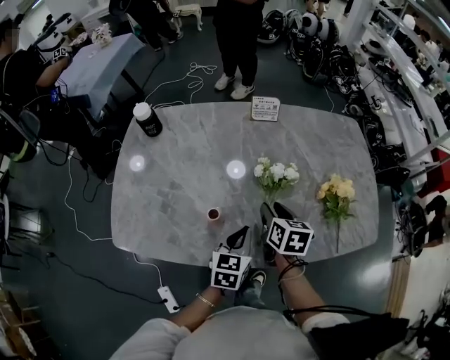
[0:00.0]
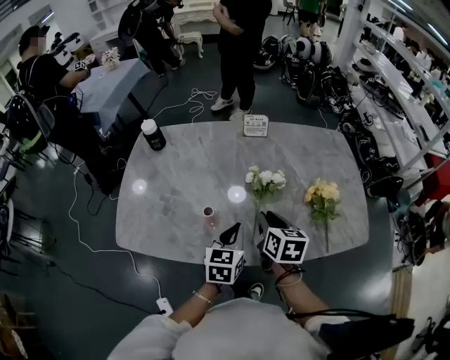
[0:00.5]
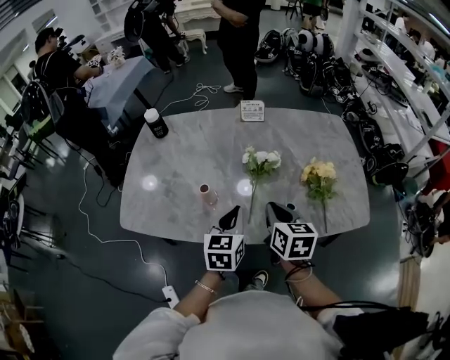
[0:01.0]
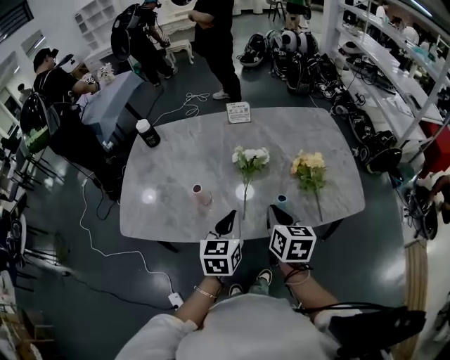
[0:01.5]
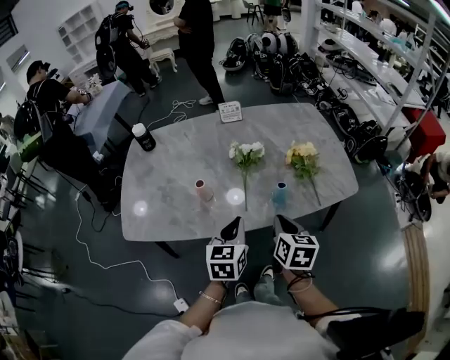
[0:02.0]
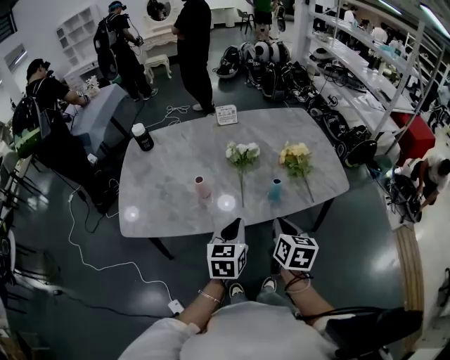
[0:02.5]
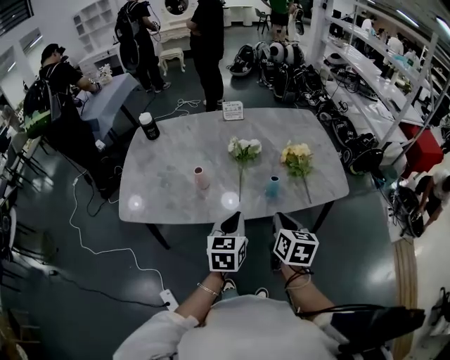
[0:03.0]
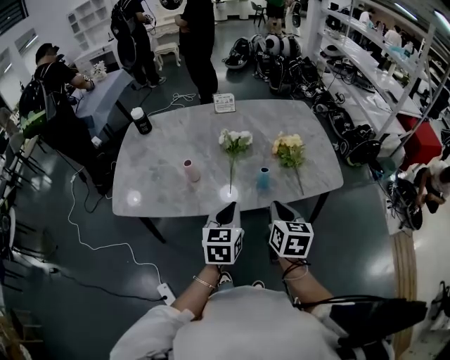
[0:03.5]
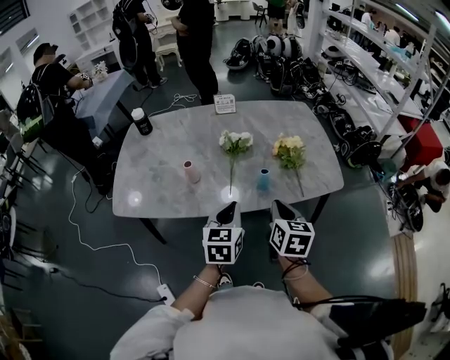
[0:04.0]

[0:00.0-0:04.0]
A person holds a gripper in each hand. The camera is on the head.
0:00.0 to 0:02.0: The left gripper goes roughly 15 cm backward and upward. Meanwhile the right gripper travels backward and to the right by roughly 25 cm, and closes its fingers.
0:02.0 to 0:04.0: The right gripper ends up some 5 cm from where it was. Meanwhile the left gripper ends up about 5 cm from where it was.

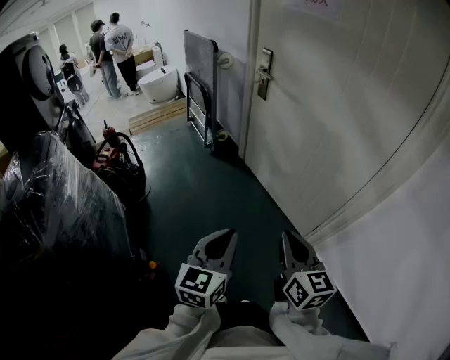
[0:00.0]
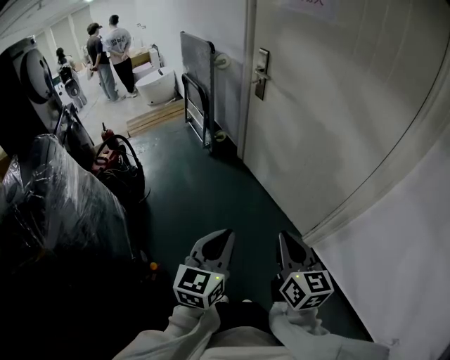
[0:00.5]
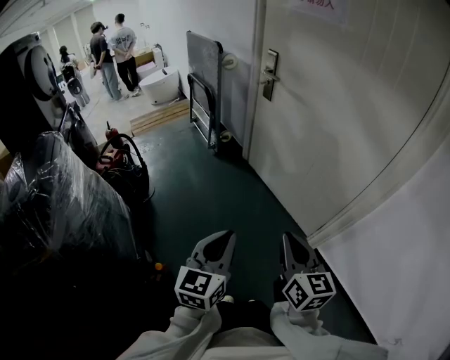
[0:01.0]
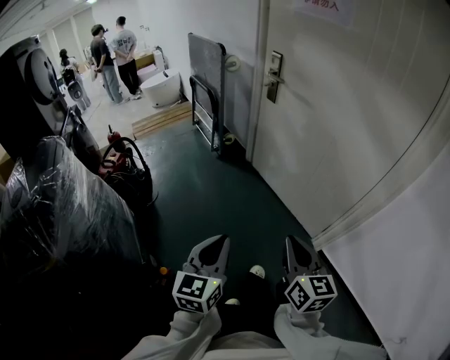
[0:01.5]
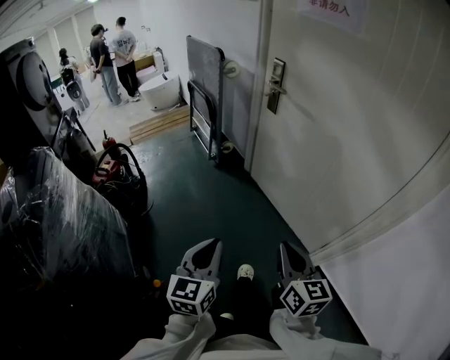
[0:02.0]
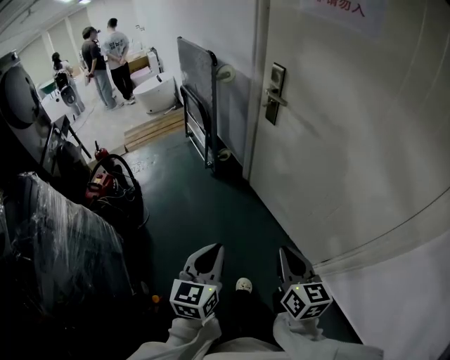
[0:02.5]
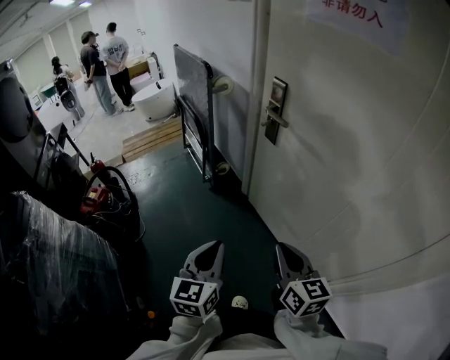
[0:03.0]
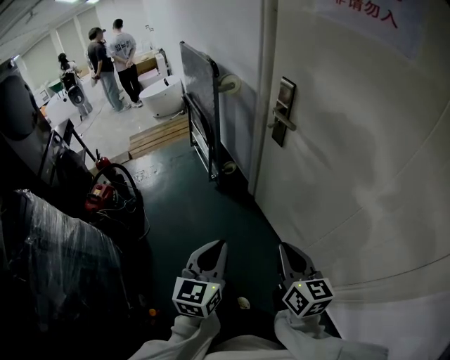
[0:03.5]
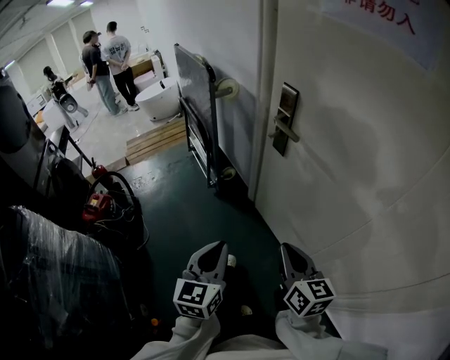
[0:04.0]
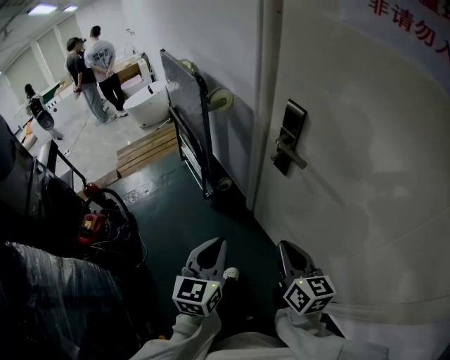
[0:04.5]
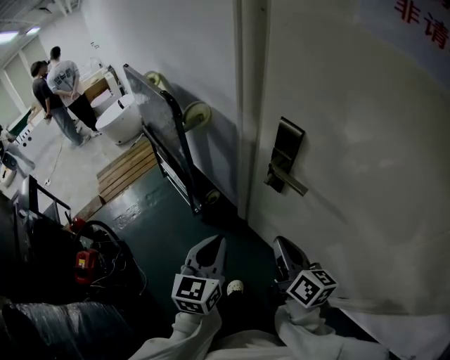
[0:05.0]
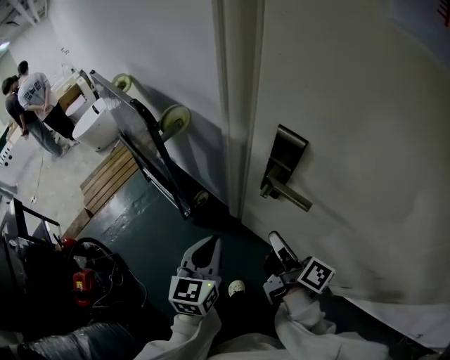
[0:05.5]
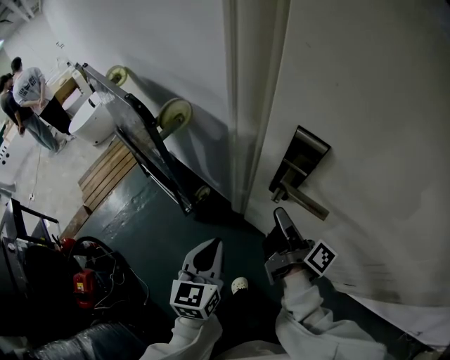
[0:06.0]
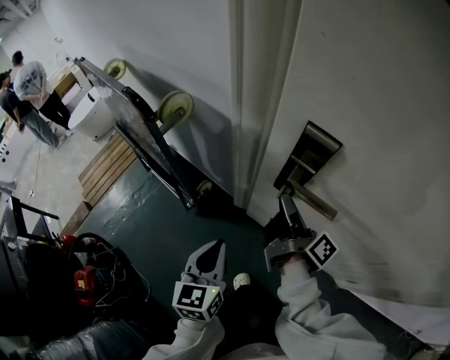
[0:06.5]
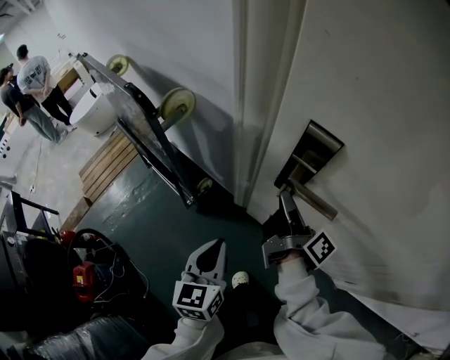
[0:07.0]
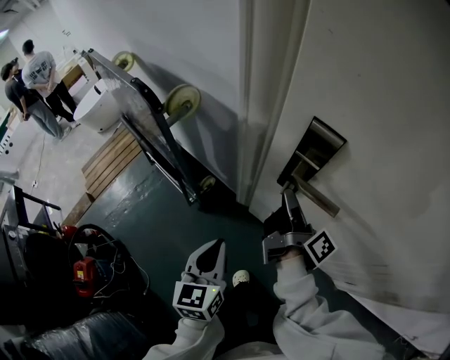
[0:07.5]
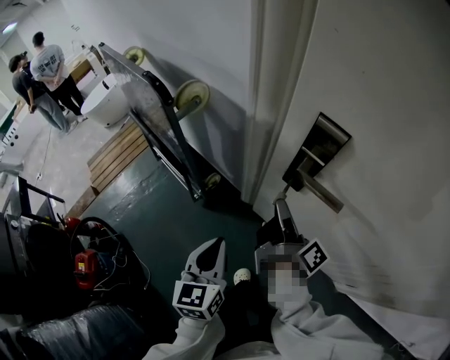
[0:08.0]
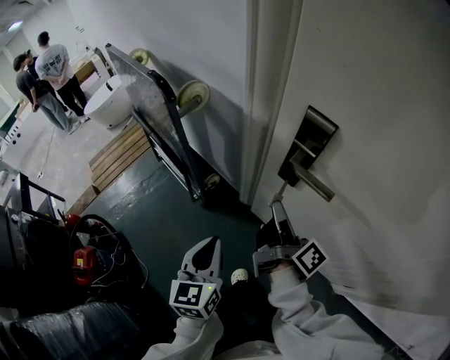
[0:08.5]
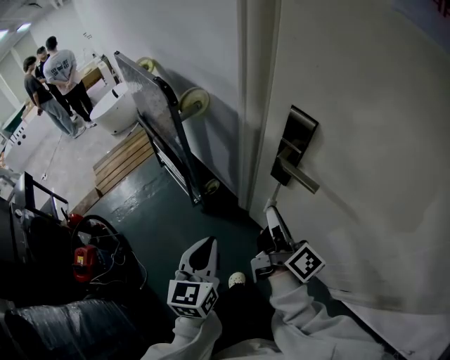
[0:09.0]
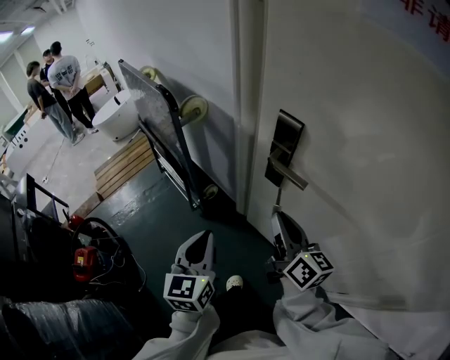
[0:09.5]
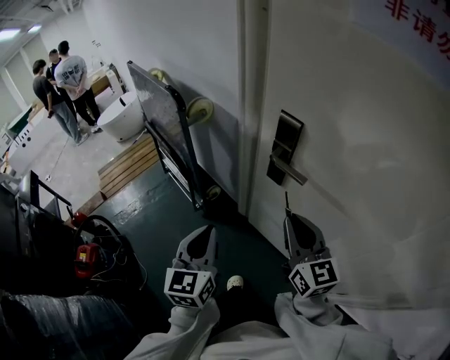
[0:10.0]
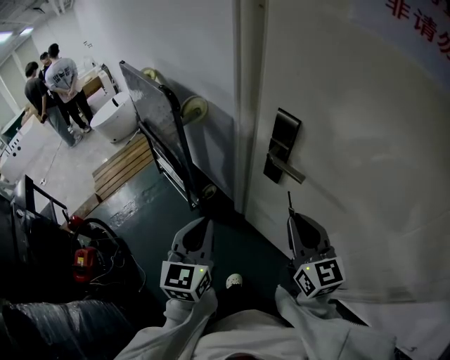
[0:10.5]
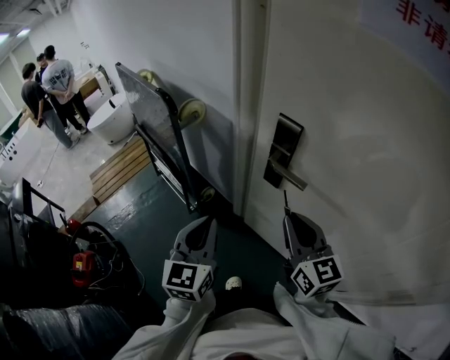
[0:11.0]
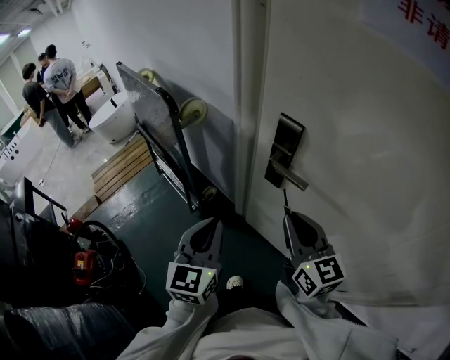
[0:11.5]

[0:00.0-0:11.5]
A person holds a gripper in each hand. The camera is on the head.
0:00.0 to 0:02.0: The left gripper moves to the left and forward, approximately 10 cm. The right gripper moves forward and to the left, about 10 cm.
0:02.0 to 0:04.0: The grippers both shift forward by about 35 cm.
0:04.0 to 0:06.0: The two grippers go roughly 35 cm forward. The right gripper rotates around the line of its fingers by some 60 degrees, clockwise from behind.
0:06.0 to 0:07.5: The grippers stay close to where they were, moving slightly.
0:07.5 to 0:09.5: The left gripper goes approximately 10 cm upward and backward; the right gripper shifts roughly 15 cm backward and upward, and rotates around the line of its fingers by about 50 degrees, counterclockwise from behind.
0:09.5 to 0:11.5: The left gripper changes place by roughly 5 cm. Meanwhile the right gripper swivels roughly 30 degrees.

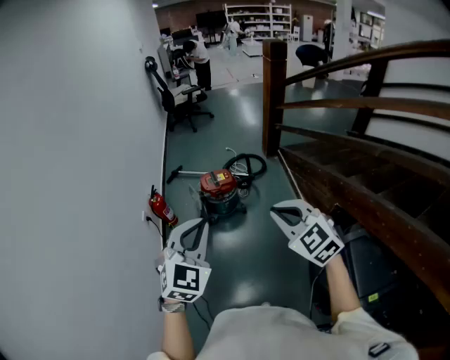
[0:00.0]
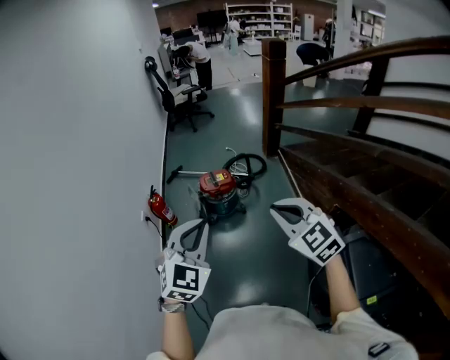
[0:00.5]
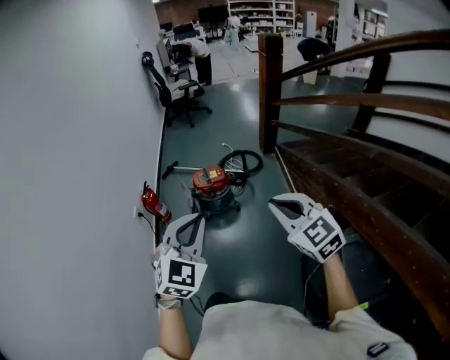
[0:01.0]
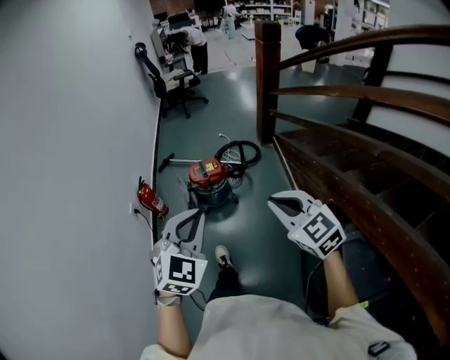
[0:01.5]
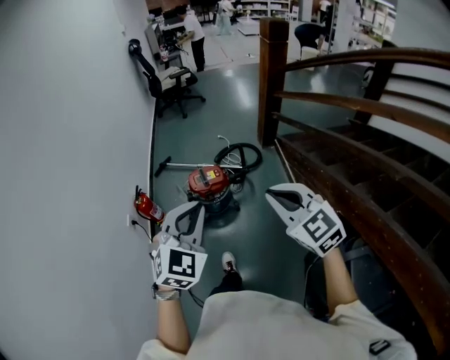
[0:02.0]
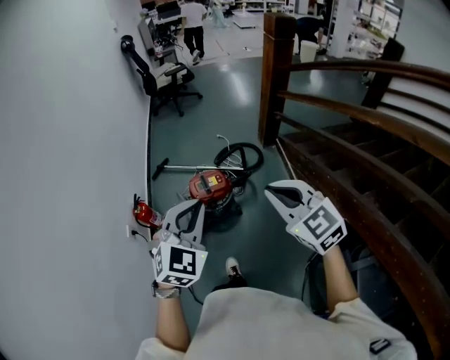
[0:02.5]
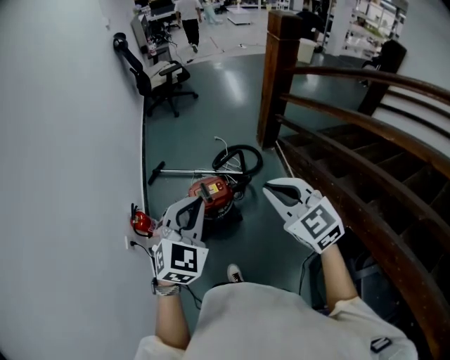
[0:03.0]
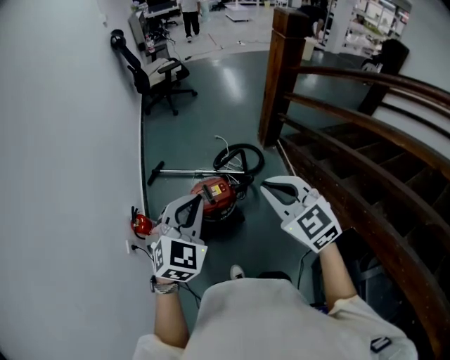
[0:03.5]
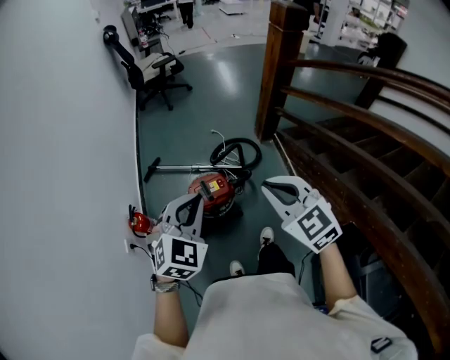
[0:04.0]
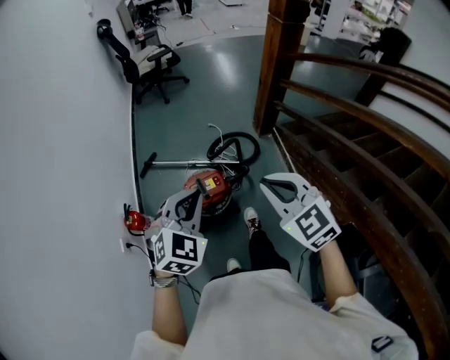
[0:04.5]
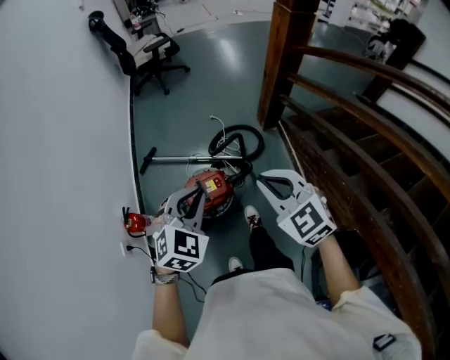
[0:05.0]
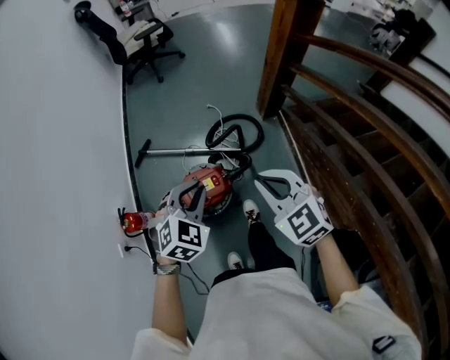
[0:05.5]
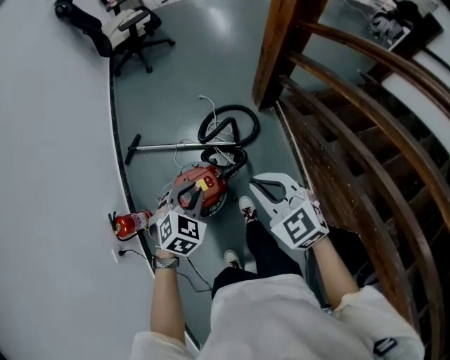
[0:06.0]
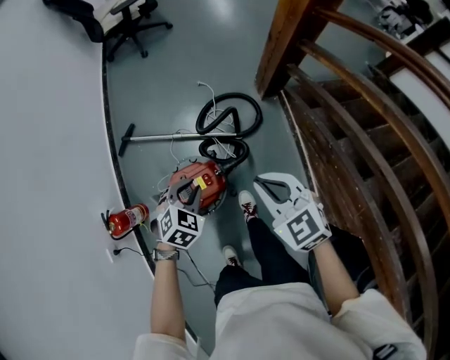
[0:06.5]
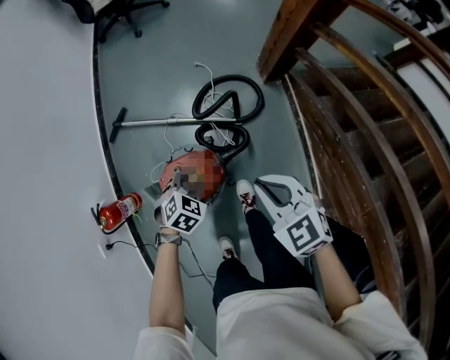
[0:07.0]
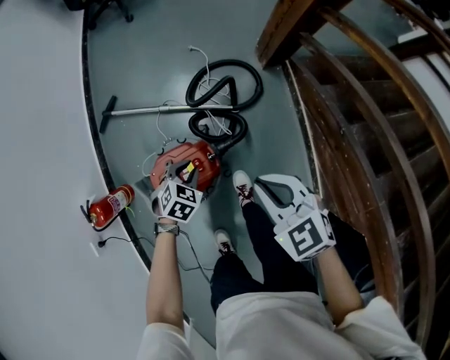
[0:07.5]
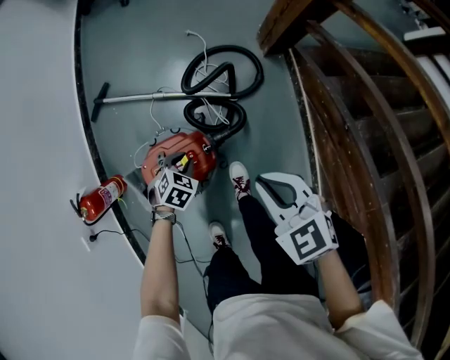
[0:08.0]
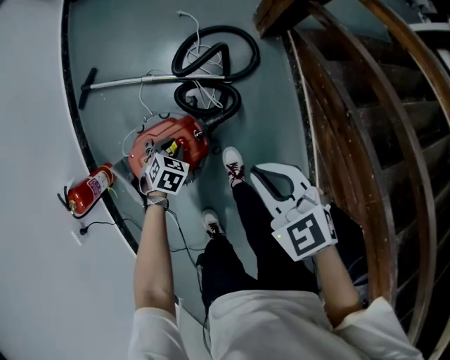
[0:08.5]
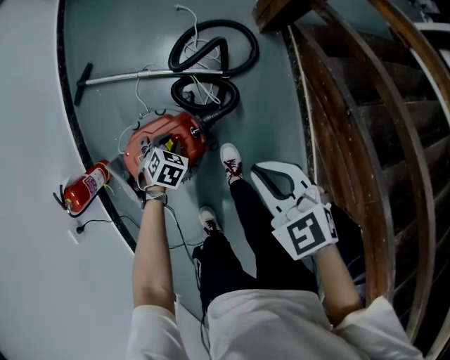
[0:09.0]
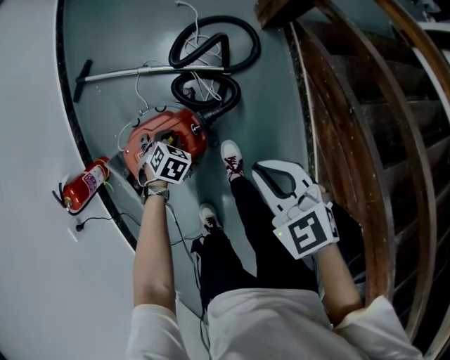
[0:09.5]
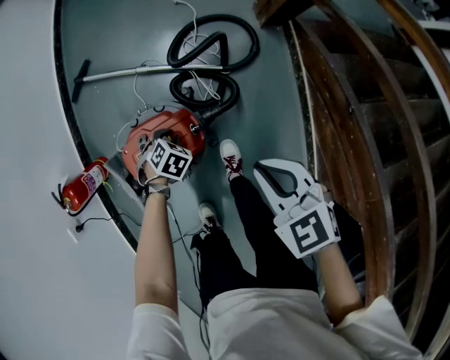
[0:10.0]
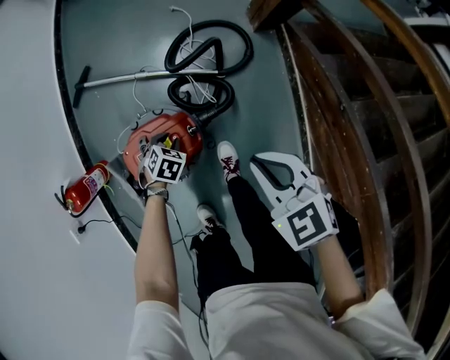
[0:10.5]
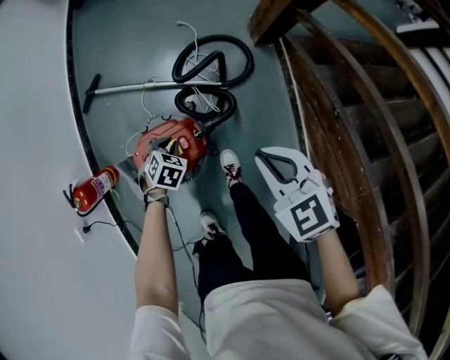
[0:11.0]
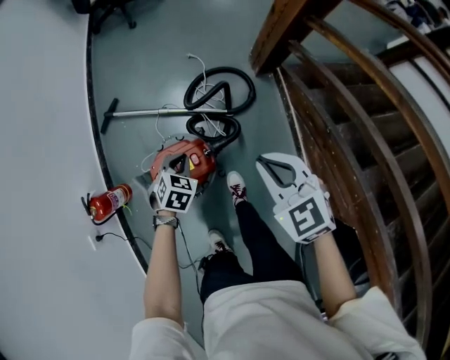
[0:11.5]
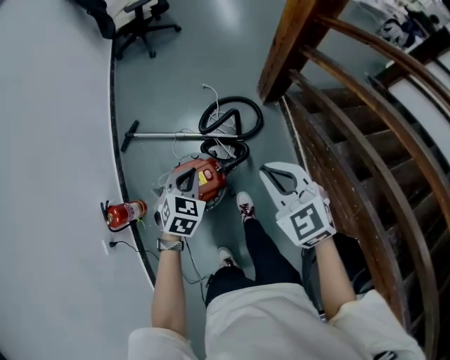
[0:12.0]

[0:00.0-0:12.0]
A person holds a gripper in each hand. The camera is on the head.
0:00.0 to 0:02.0: The grippers both shift forward by about 20 cm.
0:02.0 to 0:04.0: Both grippers travel together forward, approximately 25 cm.
0:04.0 to 0:06.0: The left gripper travels downward and forward by some 35 cm, and turns by some 20 degrees. The right gripper shifts about 30 cm forward and downward.
0:06.0 to 0:08.0: The right gripper shifts approximately 20 cm downward. The left gripper goes roughly 35 cm downward, and changes its angle by approximately 20 degrees.
0:08.0 to 0:10.0: The left gripper goes some 10 cm downward. Meanwhile the right gripper moves downward, roughly 5 cm.
0:10.0 to 0:12.0: The right gripper goes roughly 25 cm upward, and rotates roughly 20 degrees. The left gripper is displaced upward by some 35 cm, and points its fingers some 30 degrees further upward.
